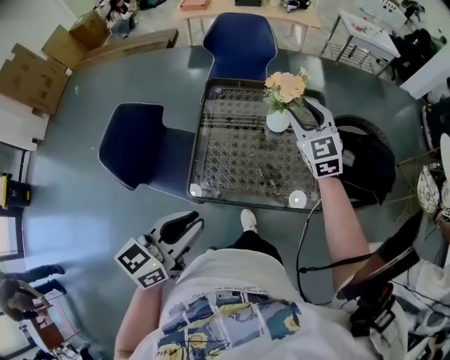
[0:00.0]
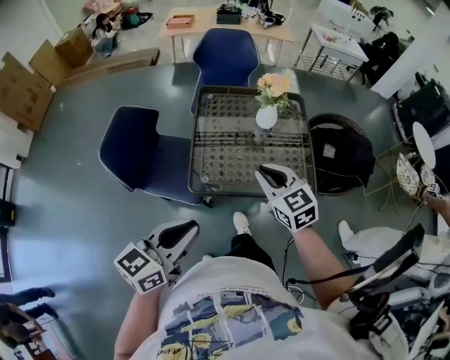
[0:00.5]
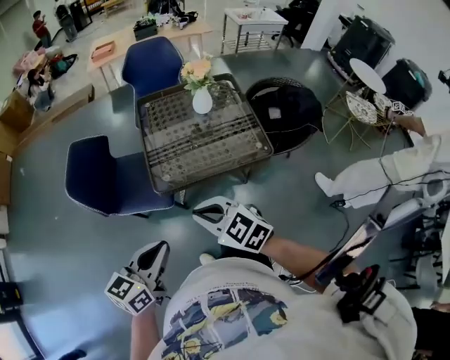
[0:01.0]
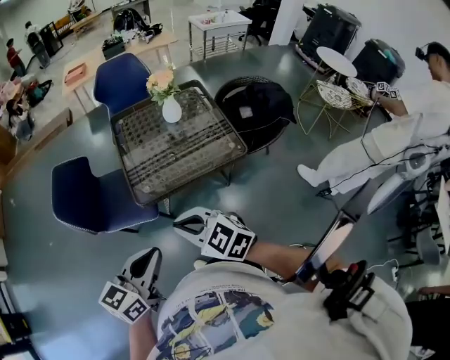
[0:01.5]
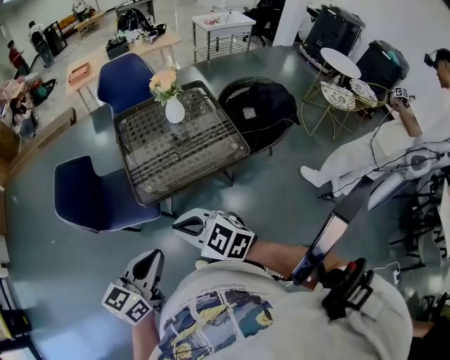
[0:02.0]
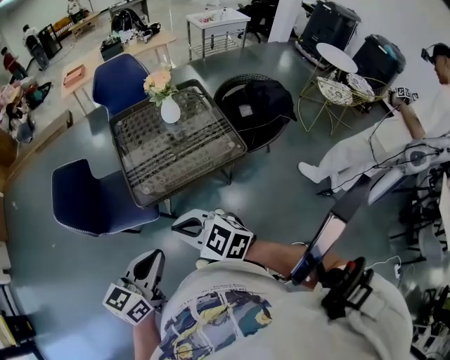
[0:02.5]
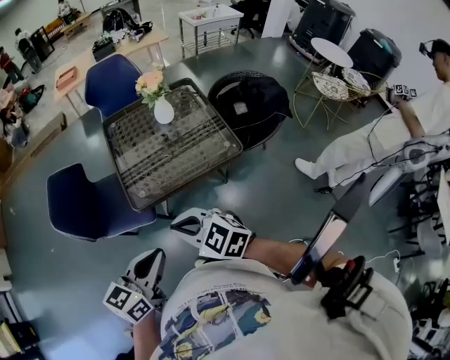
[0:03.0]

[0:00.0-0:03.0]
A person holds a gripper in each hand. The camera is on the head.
0:00.0 to 0:01.5: The right gripper is displaced backward by some 50 cm, swivels roughly 30 degrees, and closes its fingers. Meanwhile the left gripper heads backward, covering roughly 20 cm.
0:01.5 to 0:03.0: The grippers make only small movements.

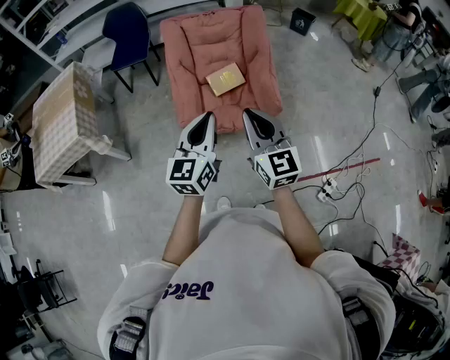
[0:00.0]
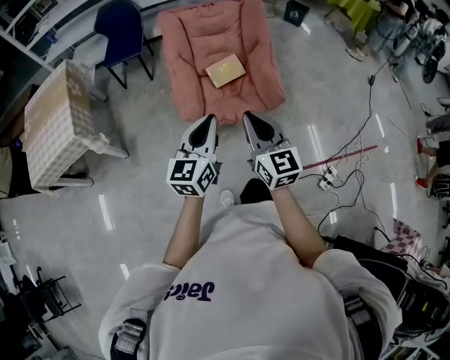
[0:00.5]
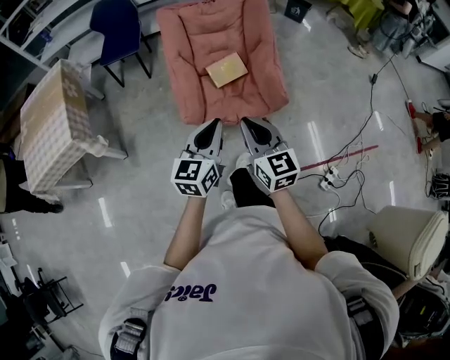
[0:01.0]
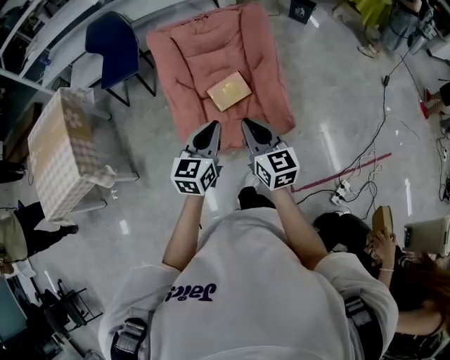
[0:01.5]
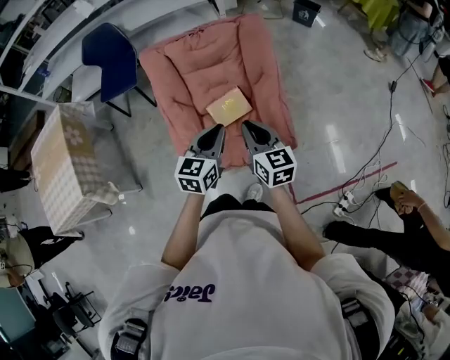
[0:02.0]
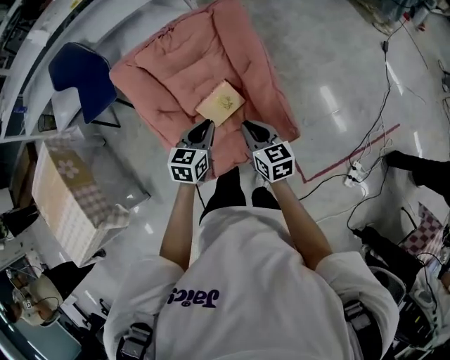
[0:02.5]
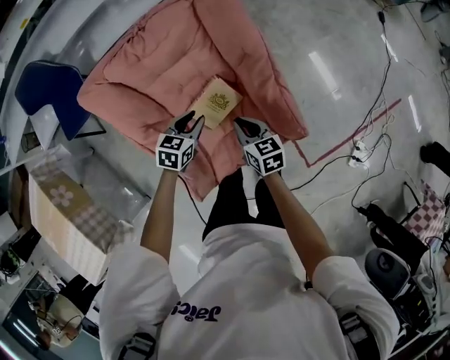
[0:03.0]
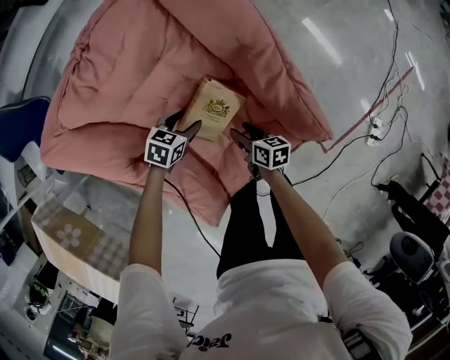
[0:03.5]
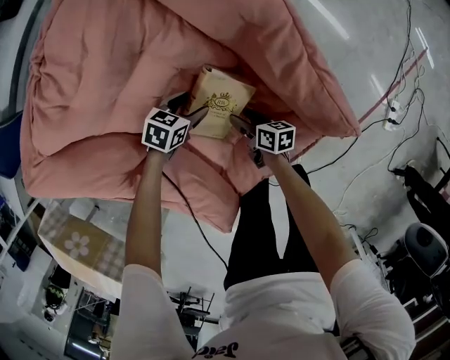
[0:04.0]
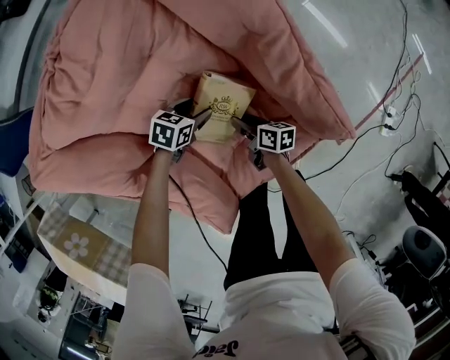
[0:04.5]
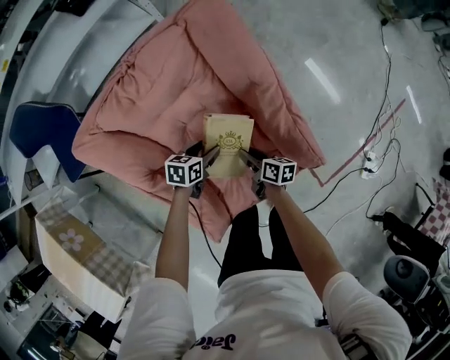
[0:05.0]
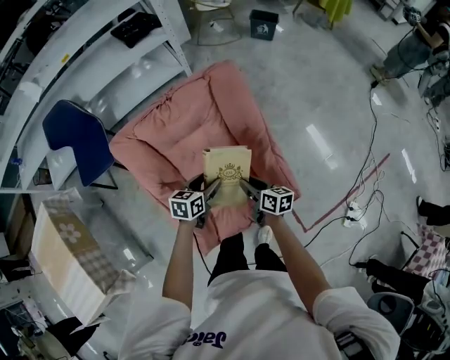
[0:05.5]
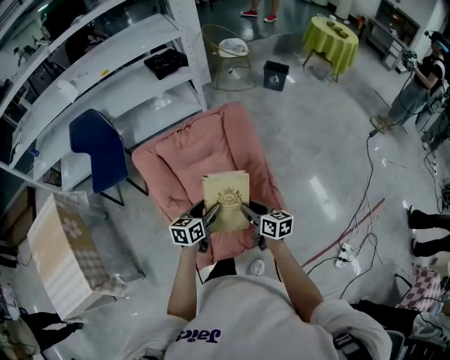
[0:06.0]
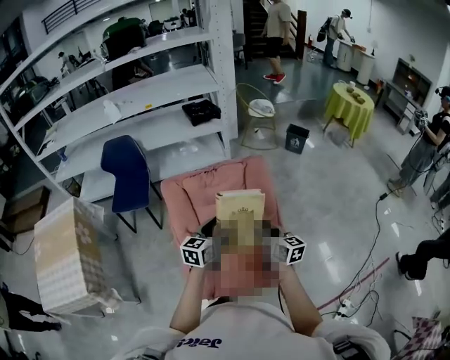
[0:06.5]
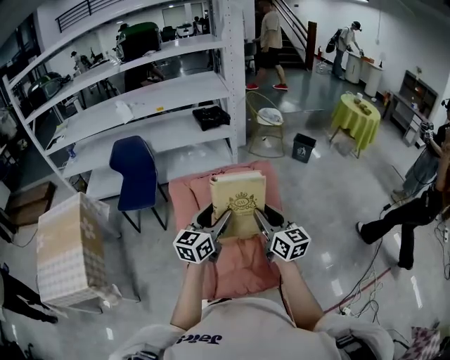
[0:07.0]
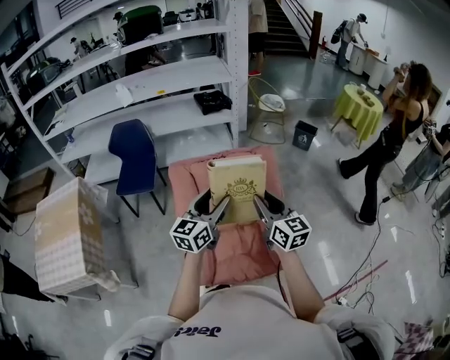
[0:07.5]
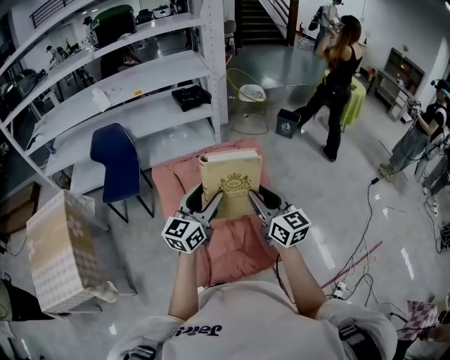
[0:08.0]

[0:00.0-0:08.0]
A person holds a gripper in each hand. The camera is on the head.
0:00.0 to 0:02.0: Both grippers travel together forward and downward, roughly 30 cm. The left gripper rotates approximately 20 degrees; the right gripper swivels about 20 degrees.
0:02.0 to 0:04.0: The grippers both shift downward by some 50 cm. The left gripper angles its fingers downward, by roughly 40 degrees, and opens. The right gripper rolls clockwise, seen from behind, by roughly 60 degrees, and opens up.
0:04.0 to 0:06.0: Both grippers move upward, approximately 40 cm. The right gripper rotates approximately 40 degrees, and closes its fingers; the left gripper swivels roughly 60 degrees.
0:06.0 to 0:08.0: Both grippers travel together upward, some 25 cm. The left gripper tips its fingers upward by some 30 degrees. Meanwhile the right gripper changes its angle by about 40 degrees.

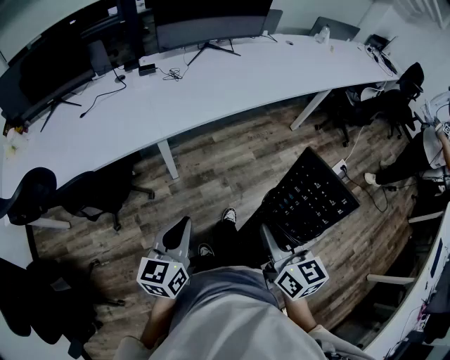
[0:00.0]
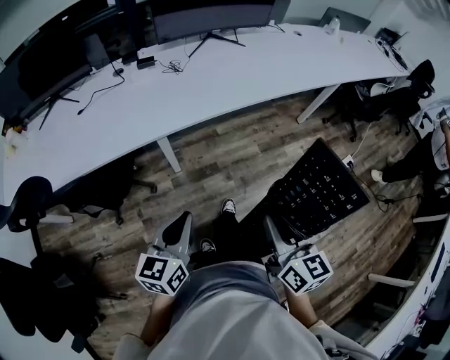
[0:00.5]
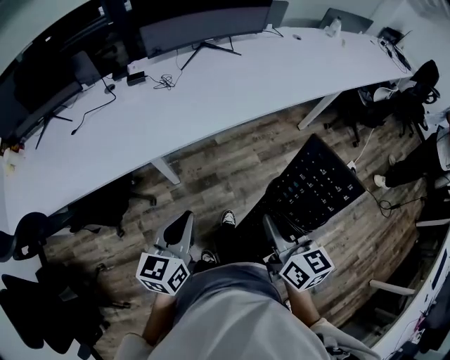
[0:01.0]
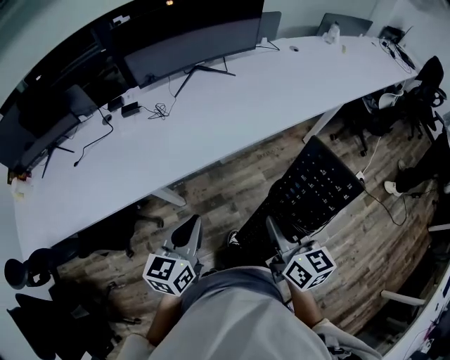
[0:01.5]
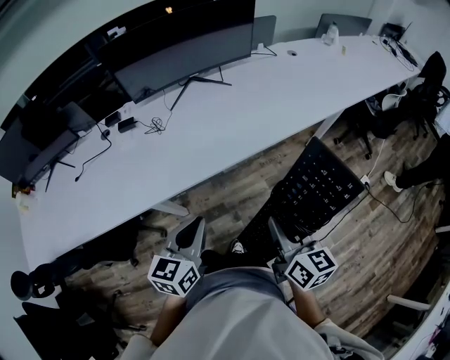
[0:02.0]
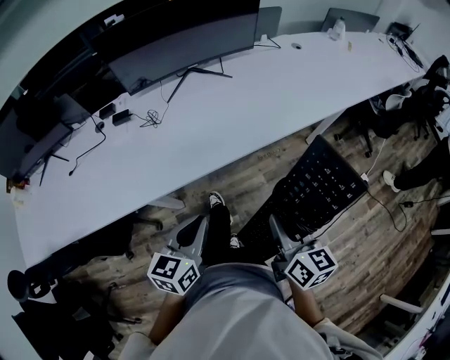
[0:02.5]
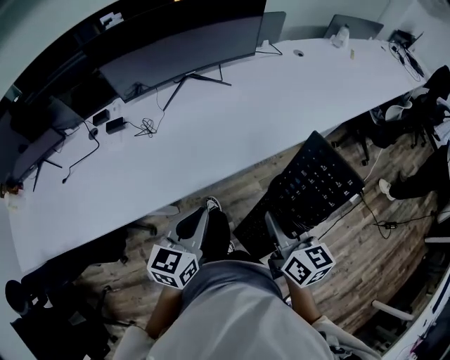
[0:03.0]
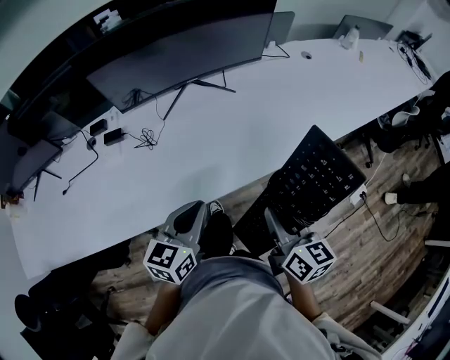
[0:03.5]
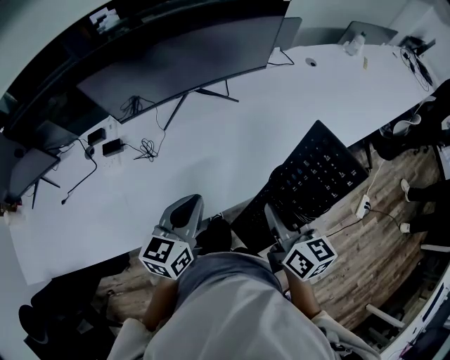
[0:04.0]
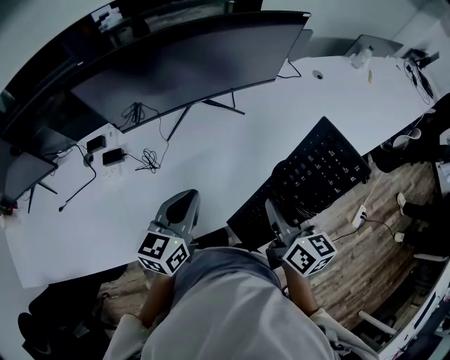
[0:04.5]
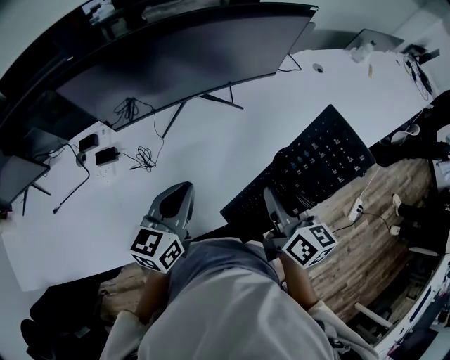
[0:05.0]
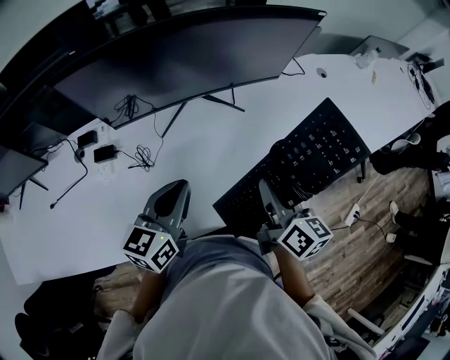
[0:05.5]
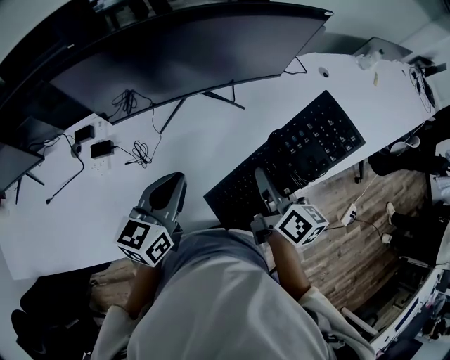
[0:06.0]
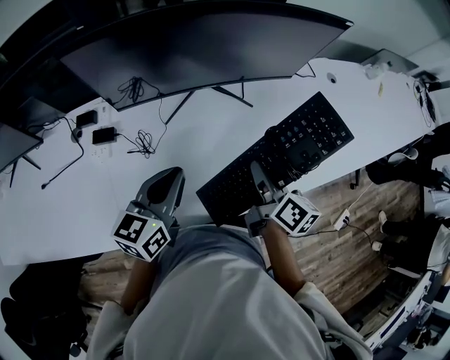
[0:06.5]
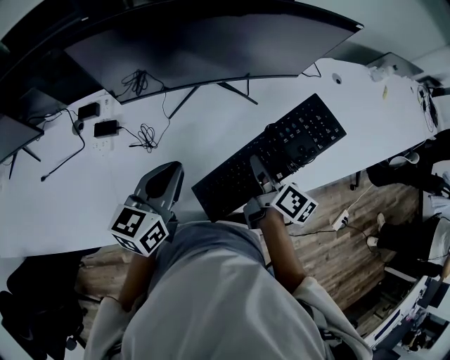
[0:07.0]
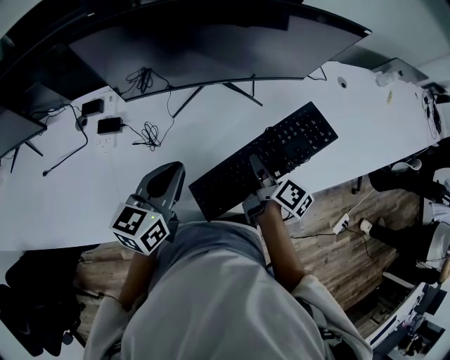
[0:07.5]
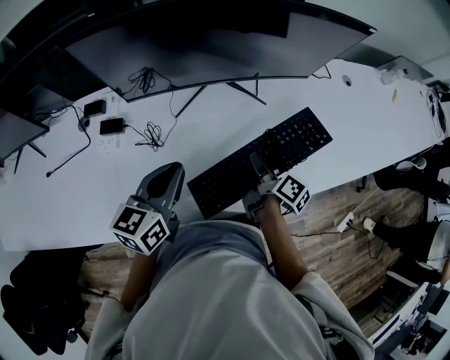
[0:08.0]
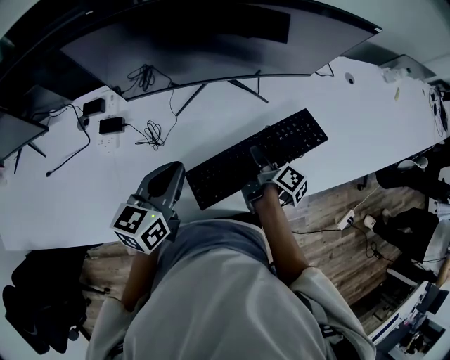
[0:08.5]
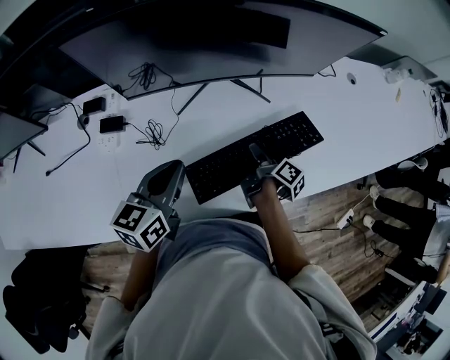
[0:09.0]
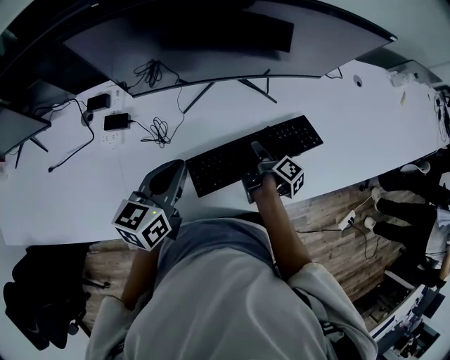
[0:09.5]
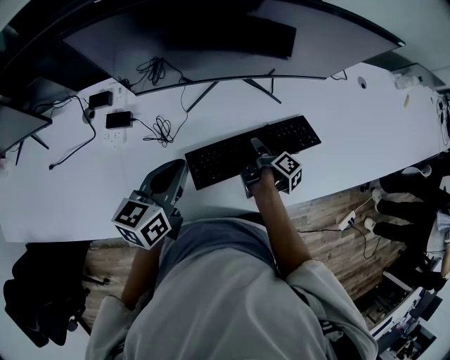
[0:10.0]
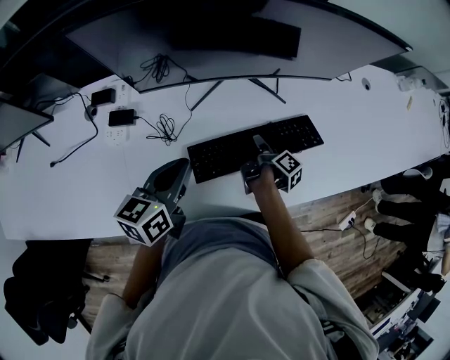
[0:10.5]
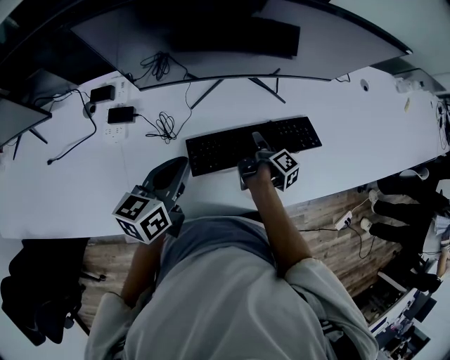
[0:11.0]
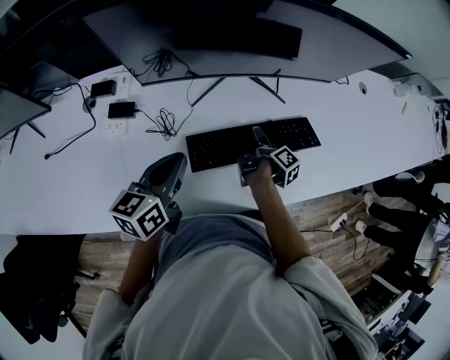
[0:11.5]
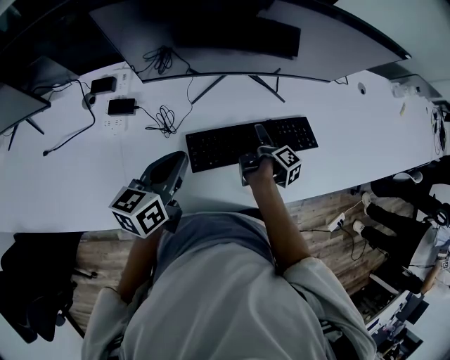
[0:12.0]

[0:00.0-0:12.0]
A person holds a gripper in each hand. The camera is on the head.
0:00.0 to 0:02.0: Both grippers travel together forward and to the right, some 35 cm.
0:02.0 to 0:04.0: Both grippers travel together forward, approximately 30 cm.
0:04.0 to 0:06.0: The left gripper moves forward and to the left, about 15 cm. Meanwhile the right gripper shifts some 20 cm forward.
0:06.0 to 0:08.0: The left gripper is displaced to the left by some 5 cm. Meanwhile the right gripper goes some 15 cm downward, and turns by roughly 30 degrees.
0:08.0 to 0:10.0: The right gripper moves downward, approximately 10 cm, and turns by approximately 20 degrees.
0:10.0 to 0:12.0: The right gripper opens.

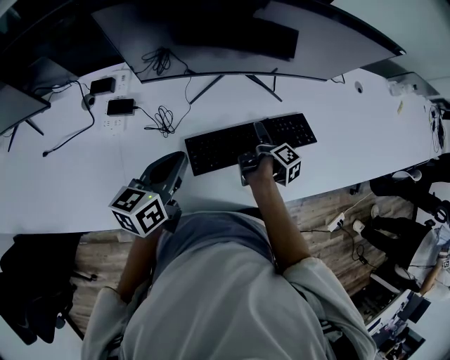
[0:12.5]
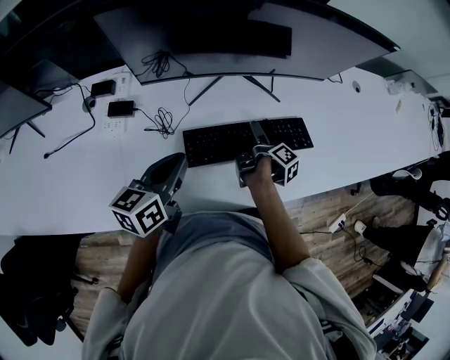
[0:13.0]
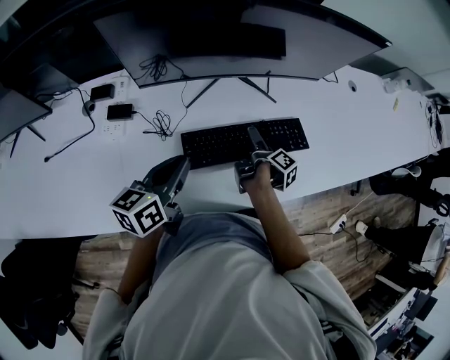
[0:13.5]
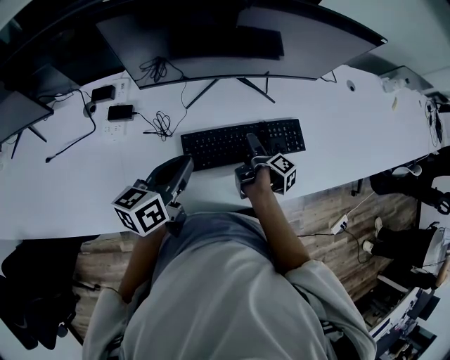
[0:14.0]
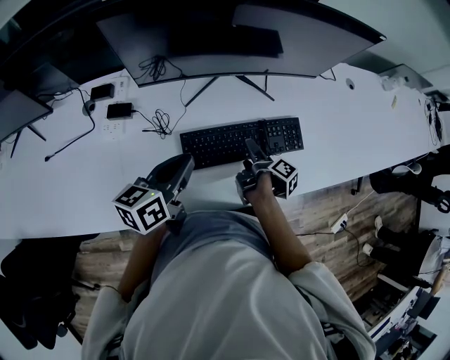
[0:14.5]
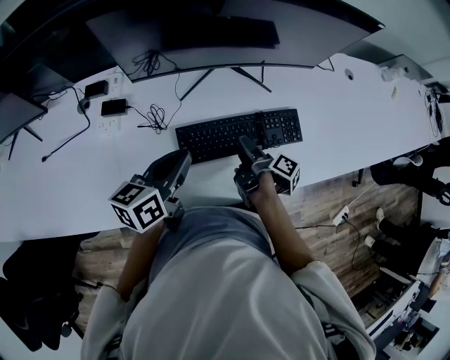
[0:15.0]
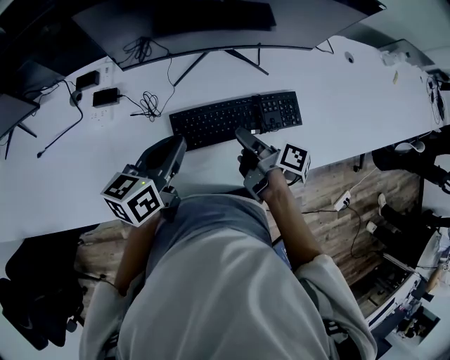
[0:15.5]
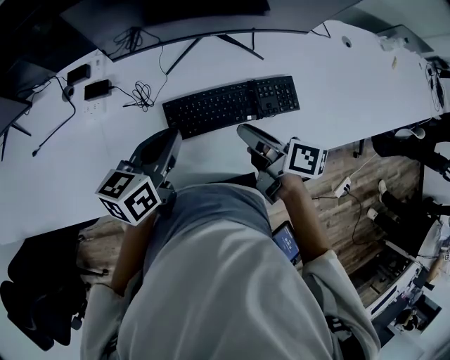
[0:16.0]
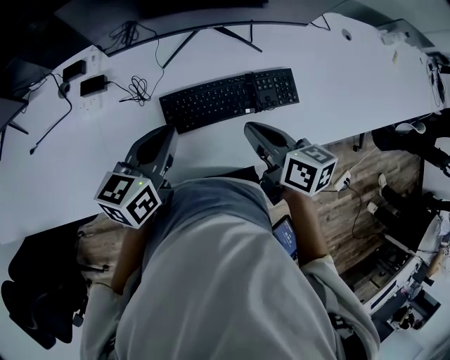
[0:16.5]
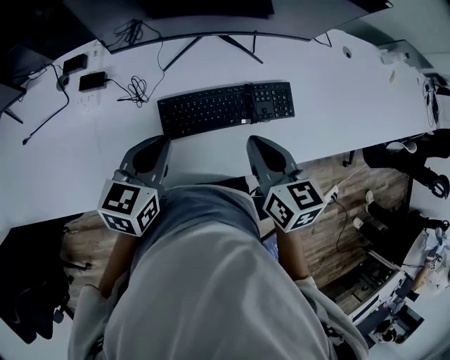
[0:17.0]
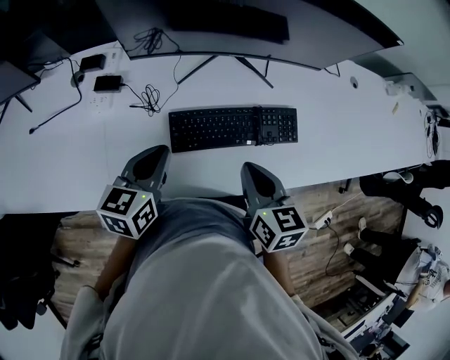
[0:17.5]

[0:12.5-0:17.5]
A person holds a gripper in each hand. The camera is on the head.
0:12.5 to 0:15.0: The right gripper moves backward, some 10 cm.
0:15.0 to 0:17.5: The right gripper travels upward and backward by about 15 cm, twists some 80 degrees counterclockwise, seen from behind, and closes its fingers.
